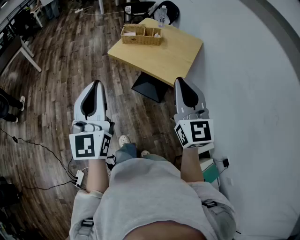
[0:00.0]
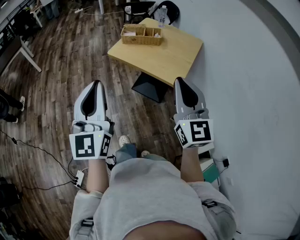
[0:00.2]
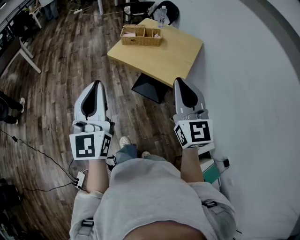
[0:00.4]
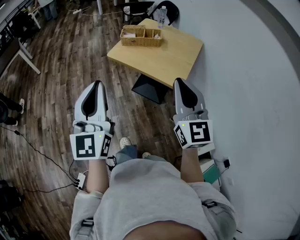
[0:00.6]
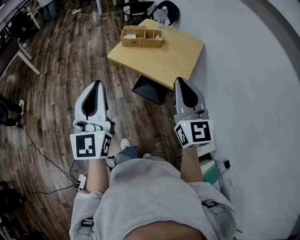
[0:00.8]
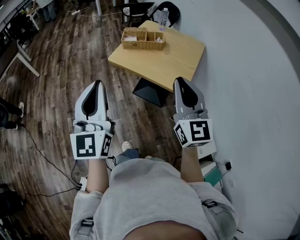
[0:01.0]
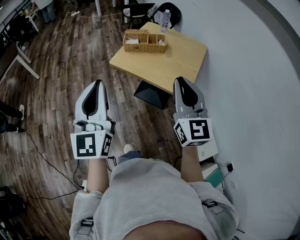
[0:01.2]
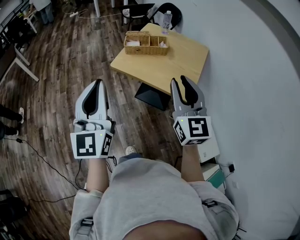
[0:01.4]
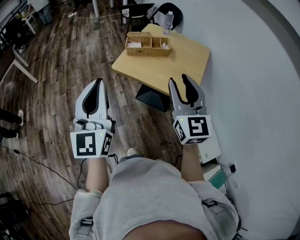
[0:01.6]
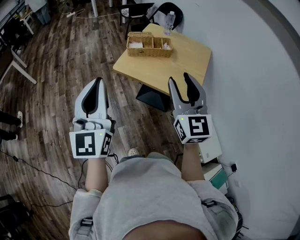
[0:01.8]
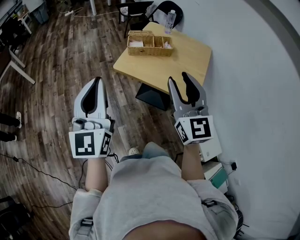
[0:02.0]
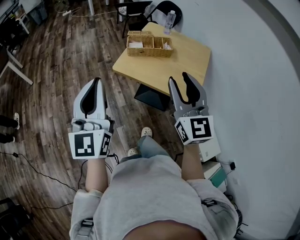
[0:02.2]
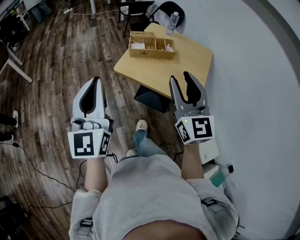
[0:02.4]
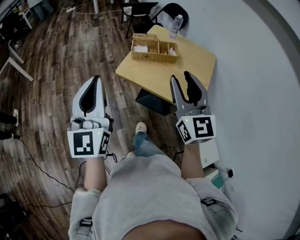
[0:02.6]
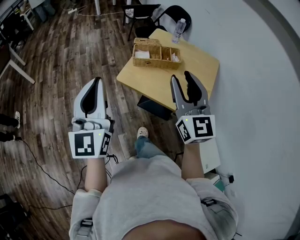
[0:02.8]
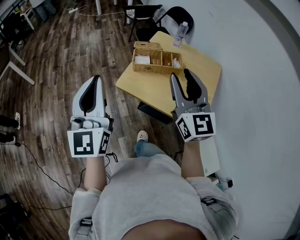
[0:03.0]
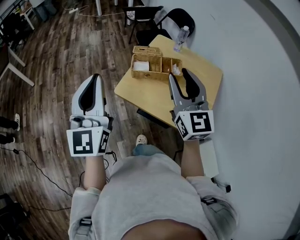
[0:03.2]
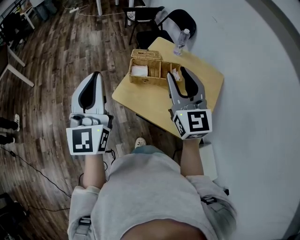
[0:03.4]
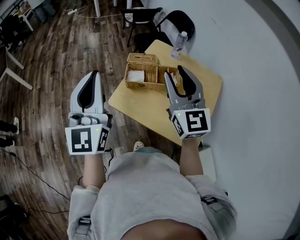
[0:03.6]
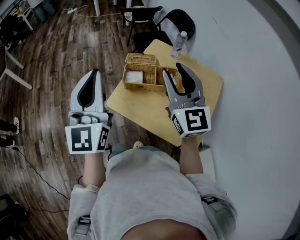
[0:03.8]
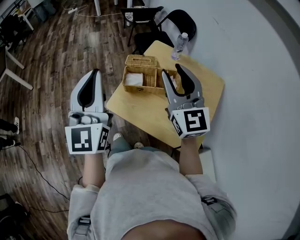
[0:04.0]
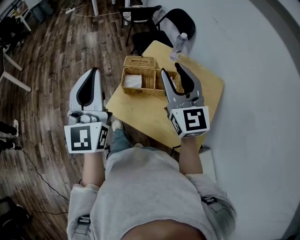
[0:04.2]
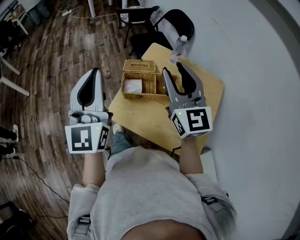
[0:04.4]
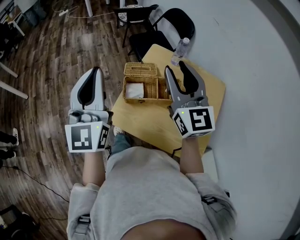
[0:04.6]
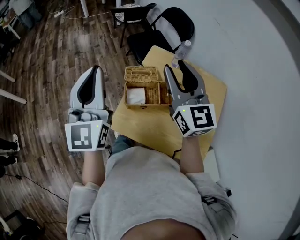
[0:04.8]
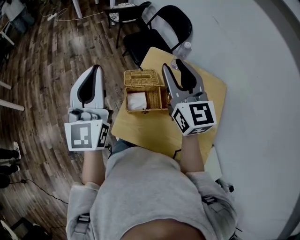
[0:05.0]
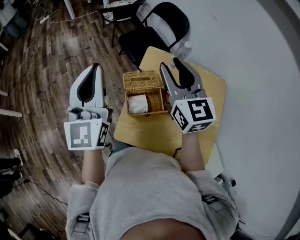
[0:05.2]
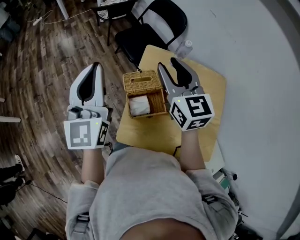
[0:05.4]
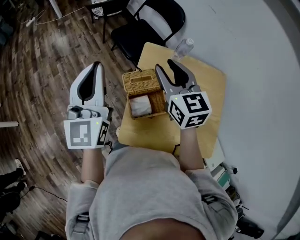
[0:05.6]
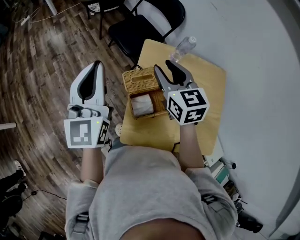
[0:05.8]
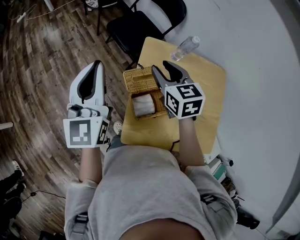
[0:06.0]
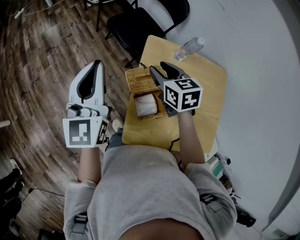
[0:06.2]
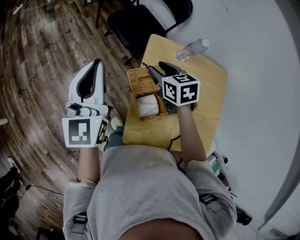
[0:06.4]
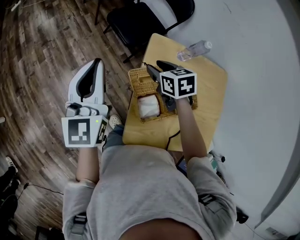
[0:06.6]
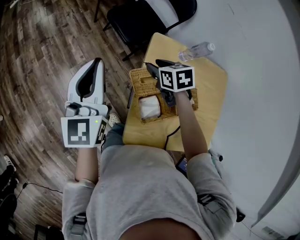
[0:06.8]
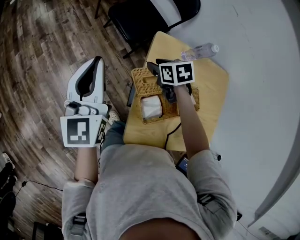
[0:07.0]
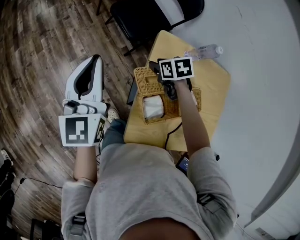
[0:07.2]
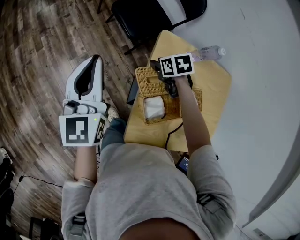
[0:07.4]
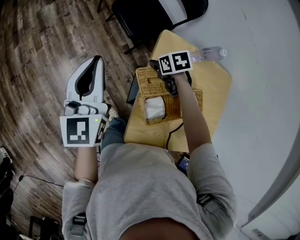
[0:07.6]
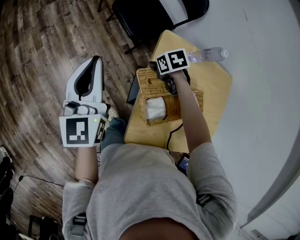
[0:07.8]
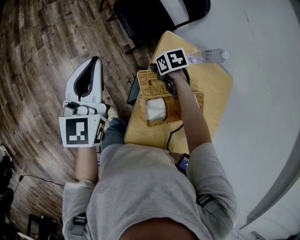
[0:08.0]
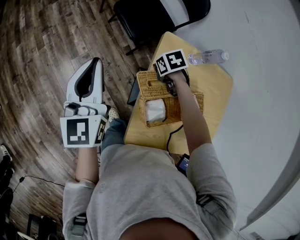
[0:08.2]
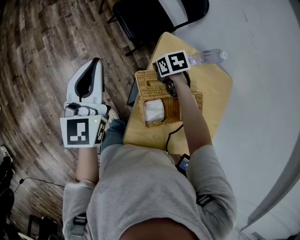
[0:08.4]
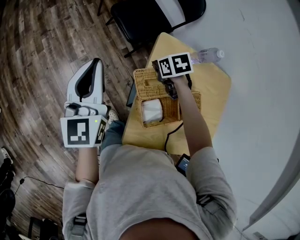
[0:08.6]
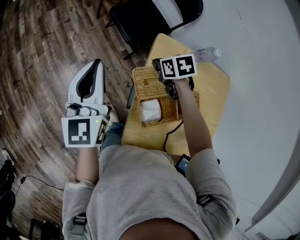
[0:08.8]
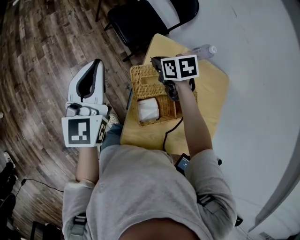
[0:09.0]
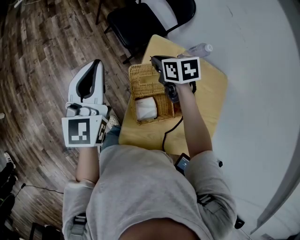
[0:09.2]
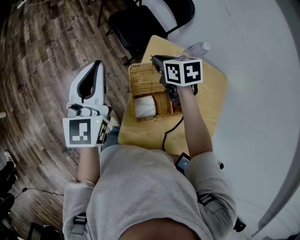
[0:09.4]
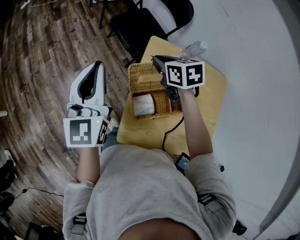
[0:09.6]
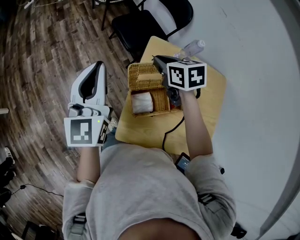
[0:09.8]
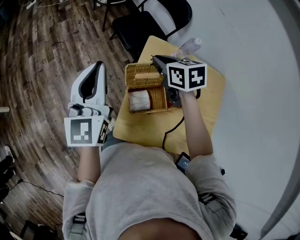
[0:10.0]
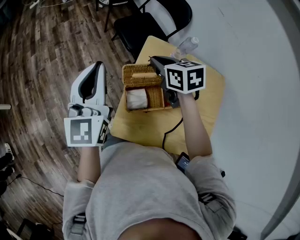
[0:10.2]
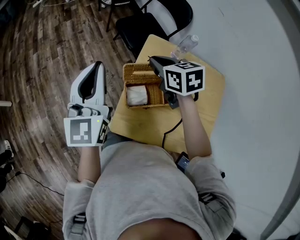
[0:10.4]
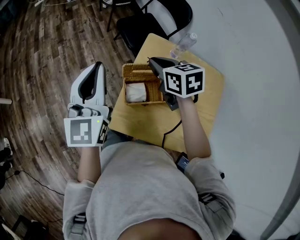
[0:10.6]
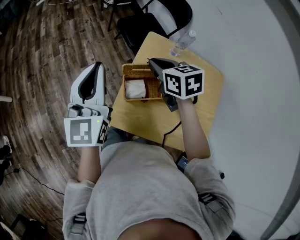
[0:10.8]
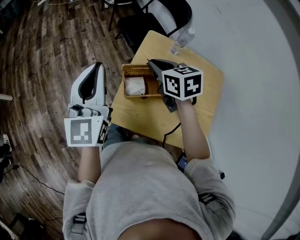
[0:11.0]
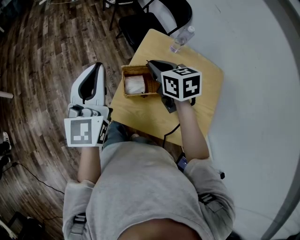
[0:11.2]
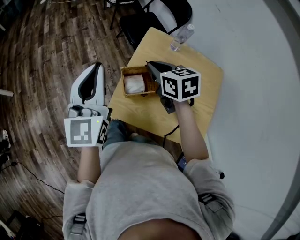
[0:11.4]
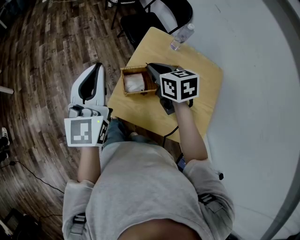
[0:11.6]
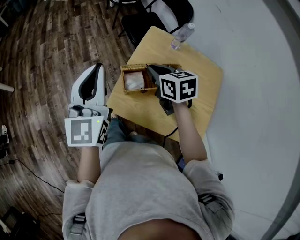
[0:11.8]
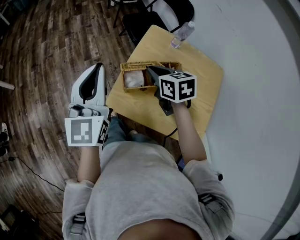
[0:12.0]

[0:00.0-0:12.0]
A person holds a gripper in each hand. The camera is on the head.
0:00.0 to 0:01.6: The grippers both shift forward and to the left by roughly 15 cm. The right gripper opens.
0:01.6 to 0:03.0: Both grippers move forward, roughly 20 cm.
0:03.0 to 0:04.4: The grippers both shift forward by some 20 cm.
0:04.4 to 0:06.0: The left gripper is displaced forward by approximately 25 cm, and swivels roughly 20 degrees, while the right gripper heads forward and downward, covering about 25 cm, and points its fingers approximately 40 degrees further downward.
0:06.0 to 0:07.6: The right gripper moves downward and forward, about 25 cm, and tilts its fingers roughly 40 degrees downward, while the left gripper moves downward and forward, about 10 cm.
0:07.6 to 0:09.0: The right gripper moves upward, about 10 cm, and closes its fingers.
0:09.0 to 0:10.4: The right gripper travels upward and backward by approximately 15 cm, and changes its angle by about 20 degrees, while the left gripper travels backward and upward by roughly 15 cm.
0:10.4 to 0:12.0: Both grippers move backward, approximately 15 cm.

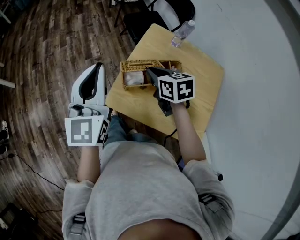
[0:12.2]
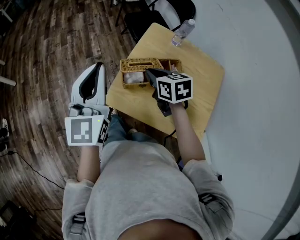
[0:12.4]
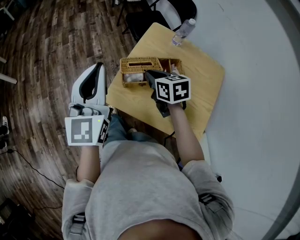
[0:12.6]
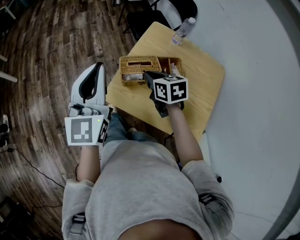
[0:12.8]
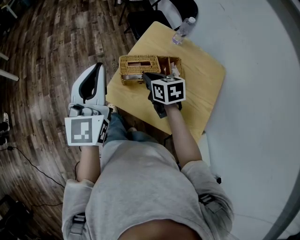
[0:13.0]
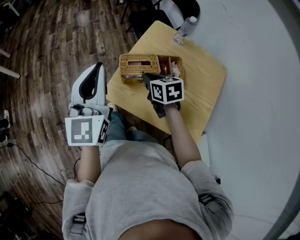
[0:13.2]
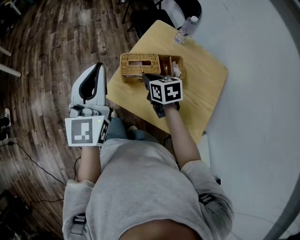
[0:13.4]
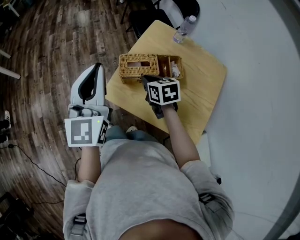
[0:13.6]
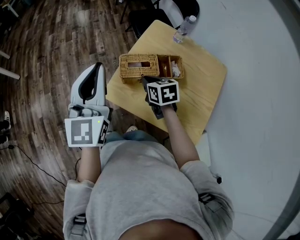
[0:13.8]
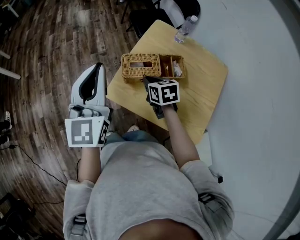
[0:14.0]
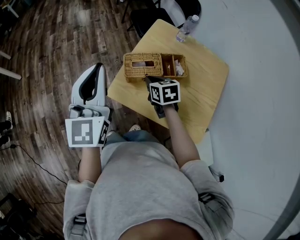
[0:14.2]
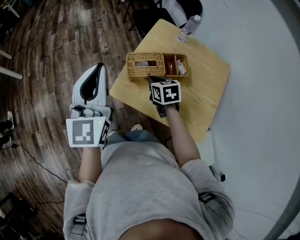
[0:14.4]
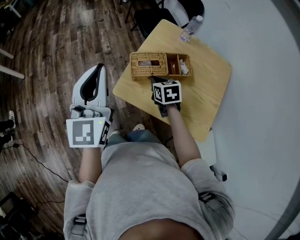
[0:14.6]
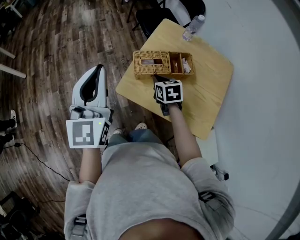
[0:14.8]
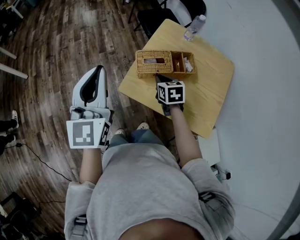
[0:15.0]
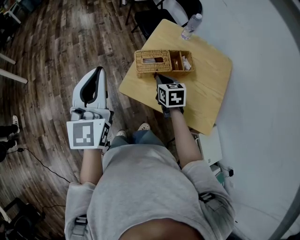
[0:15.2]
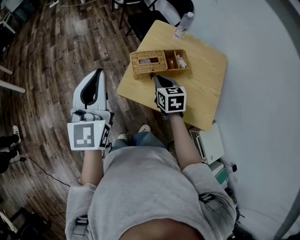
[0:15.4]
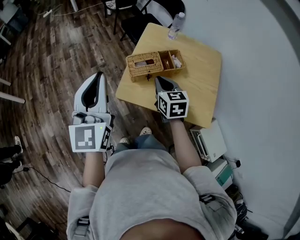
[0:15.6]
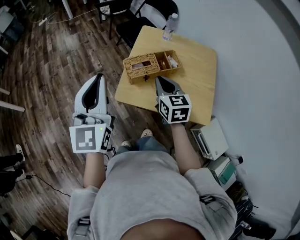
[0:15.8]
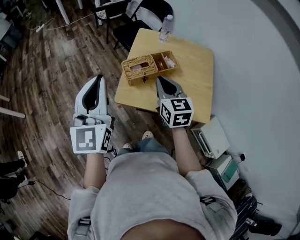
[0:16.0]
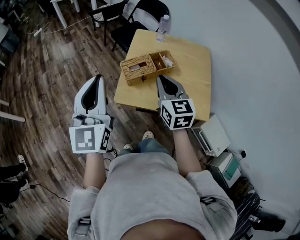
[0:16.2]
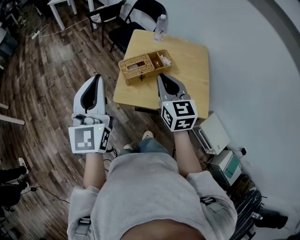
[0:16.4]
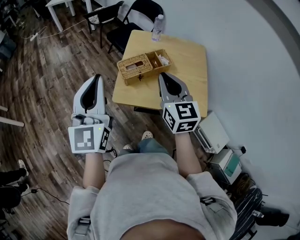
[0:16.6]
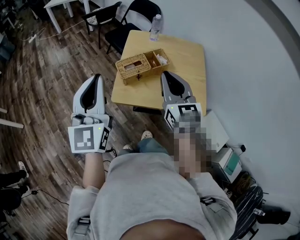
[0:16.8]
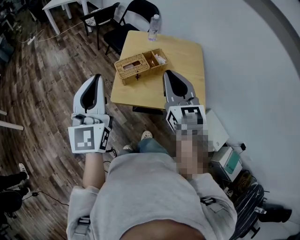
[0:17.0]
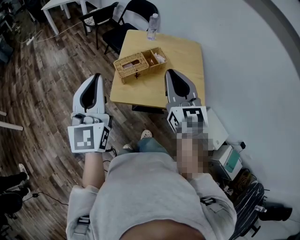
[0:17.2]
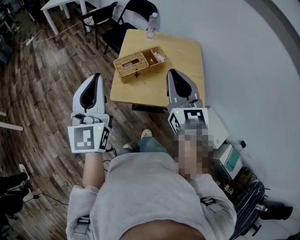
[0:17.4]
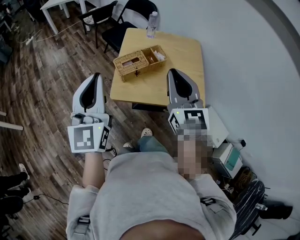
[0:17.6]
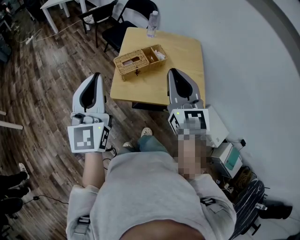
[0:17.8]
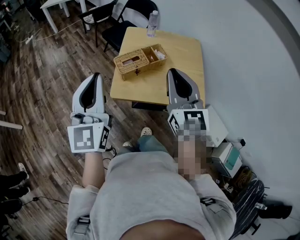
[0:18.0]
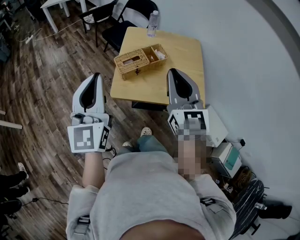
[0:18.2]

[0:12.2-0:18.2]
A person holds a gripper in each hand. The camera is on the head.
0:12.2 to 0:13.8: The right gripper is displaced downward by approximately 10 cm.
0:13.8 to 0:15.2: The left gripper heads to the left, covering some 5 cm.
0:15.2 to 0:16.6: The left gripper changes place by approximately 5 cm; the right gripper is displaced upward and backward by about 25 cm, and tips its fingers upward by roughly 30 degrees.
0:16.6 to 0:18.2: The right gripper goes roughly 10 cm upward and backward.

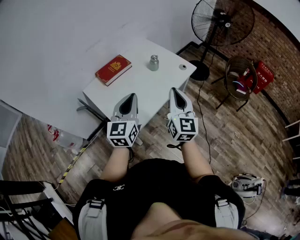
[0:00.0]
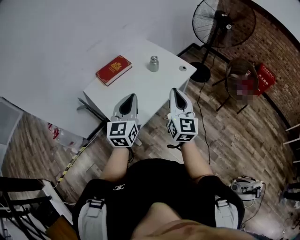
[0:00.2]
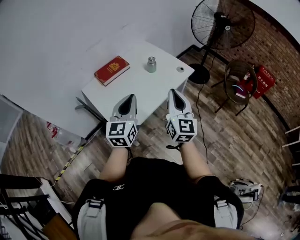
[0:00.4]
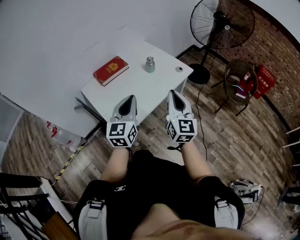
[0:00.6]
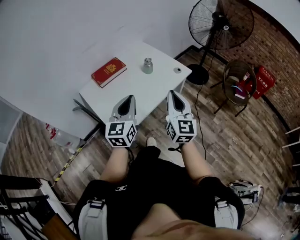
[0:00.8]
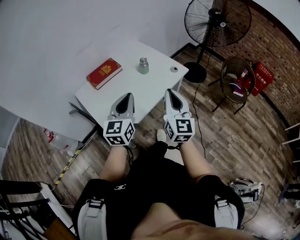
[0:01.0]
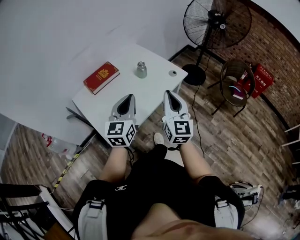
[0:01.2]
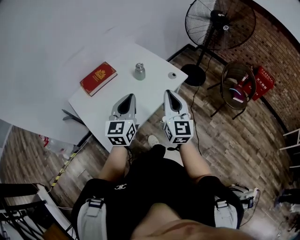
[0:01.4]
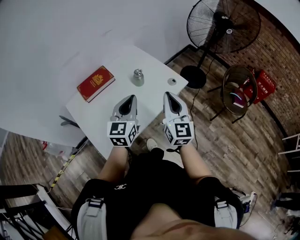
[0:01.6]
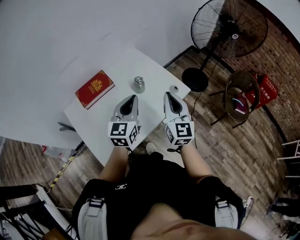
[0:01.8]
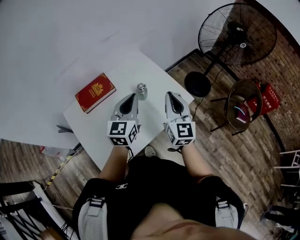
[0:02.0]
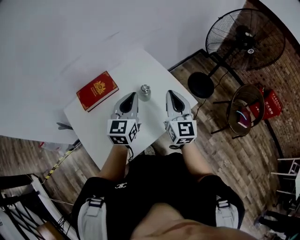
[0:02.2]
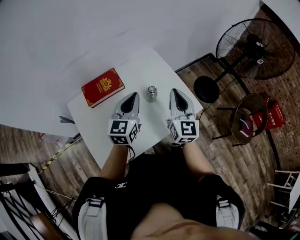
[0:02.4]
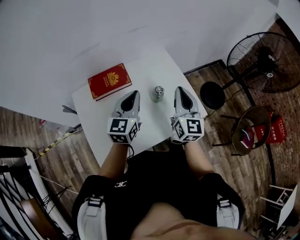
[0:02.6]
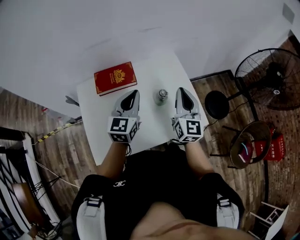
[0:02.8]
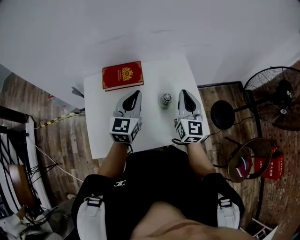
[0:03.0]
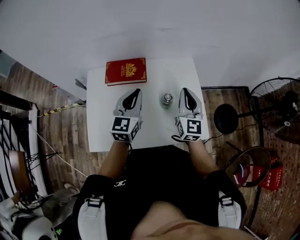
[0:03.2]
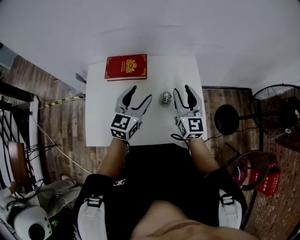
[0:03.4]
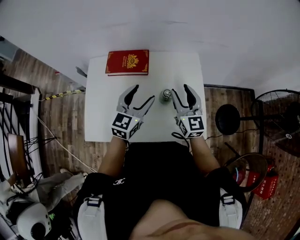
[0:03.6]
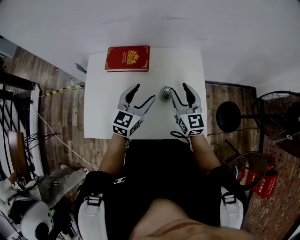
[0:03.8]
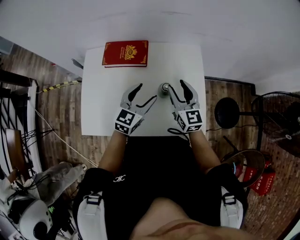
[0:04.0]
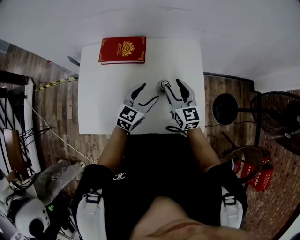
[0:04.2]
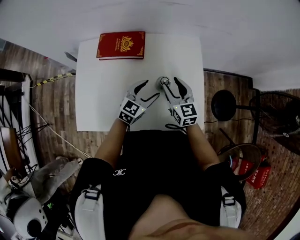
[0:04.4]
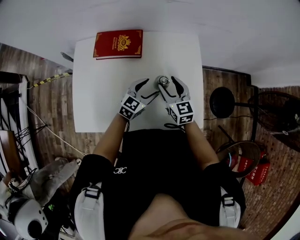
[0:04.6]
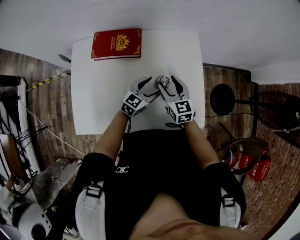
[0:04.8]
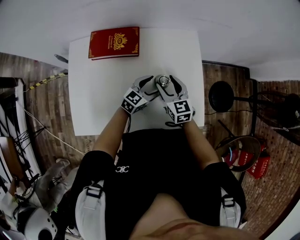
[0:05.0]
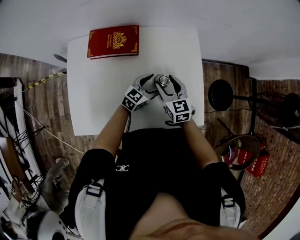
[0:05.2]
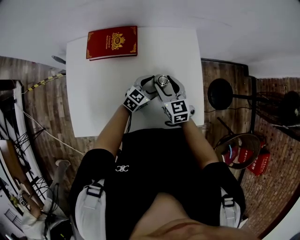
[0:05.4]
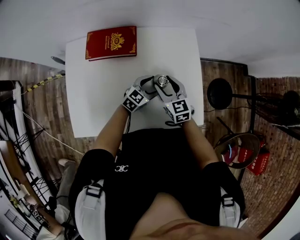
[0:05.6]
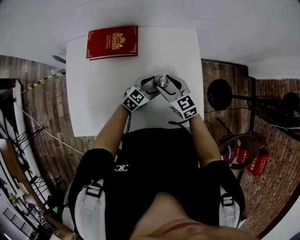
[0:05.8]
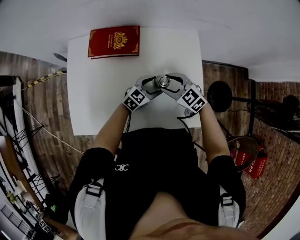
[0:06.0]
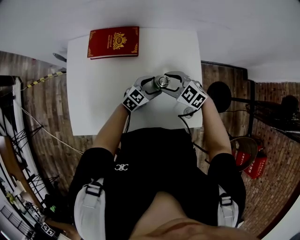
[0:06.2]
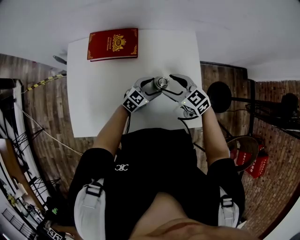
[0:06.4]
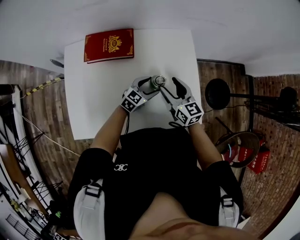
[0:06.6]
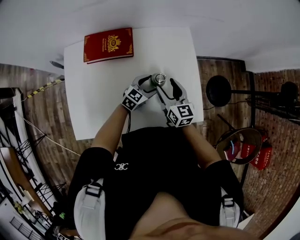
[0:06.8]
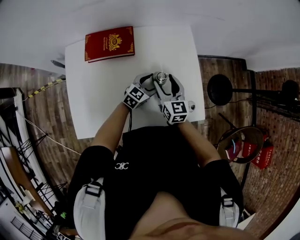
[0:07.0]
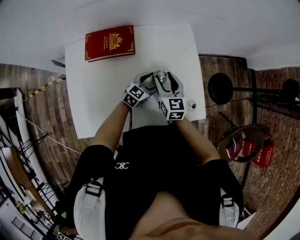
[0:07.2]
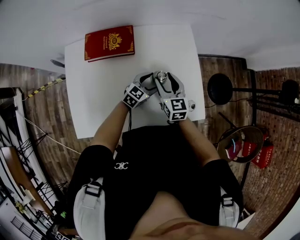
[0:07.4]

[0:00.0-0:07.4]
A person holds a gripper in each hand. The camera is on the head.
0:00.0 to 0:01.4: The grippers both shift forward and to the right by some 15 cm.
0:01.4 to 0:03.0: The right gripper ends up approximately 35 cm from where it was, and swivels about 30 degrees, while the left gripper changes place by approximately 25 cm, and swivels roughly 30 degrees.
0:03.0 to 0:04.4: The right gripper heads downward, covering roughly 15 cm, swivels approximately 30 degrees, and opens, while the left gripper heads downward and to the right, covering roughly 20 cm, rotates about 20 degrees, and opens.
0:04.4 to 0:06.0: Both grippers travel together downward, about 10 cm. The right gripper swivels about 40 degrees.
0:06.0 to 0:07.4: The right gripper rotates approximately 50 degrees.
